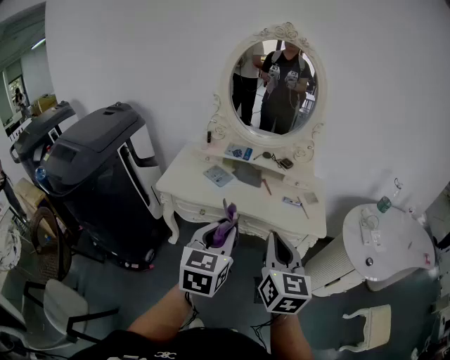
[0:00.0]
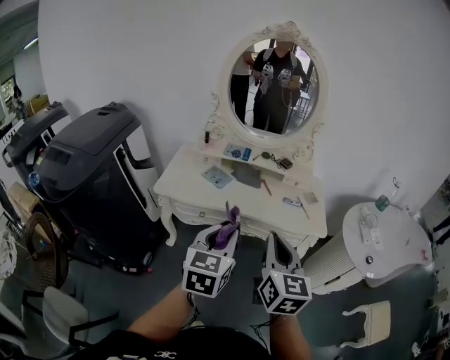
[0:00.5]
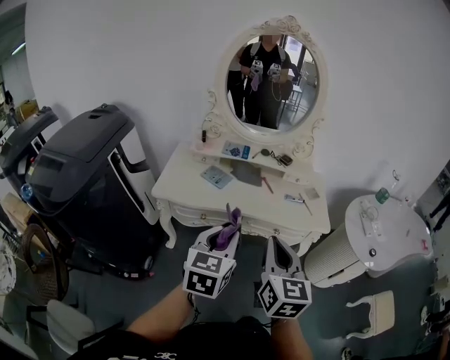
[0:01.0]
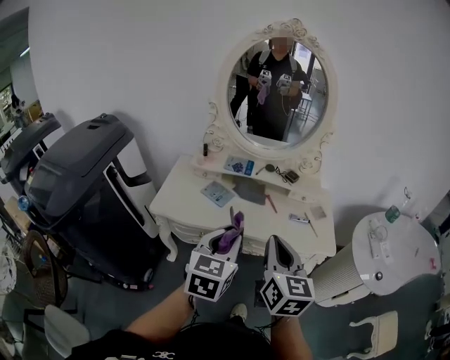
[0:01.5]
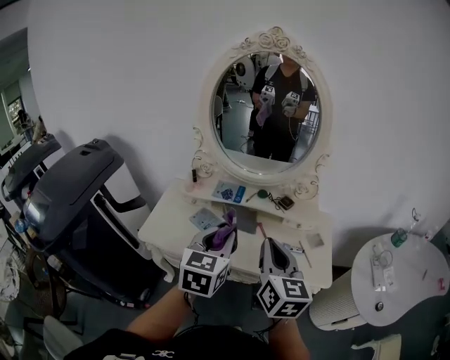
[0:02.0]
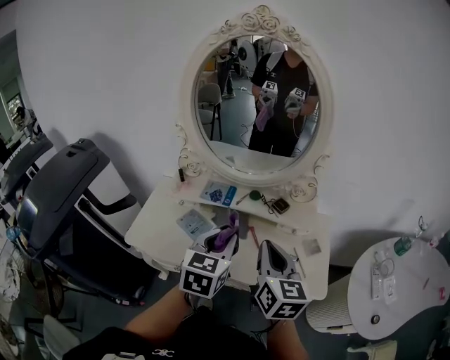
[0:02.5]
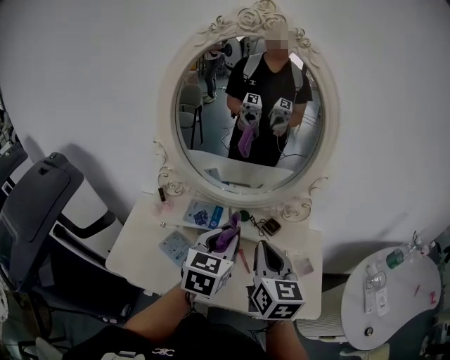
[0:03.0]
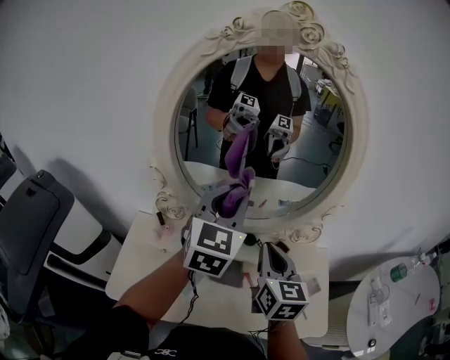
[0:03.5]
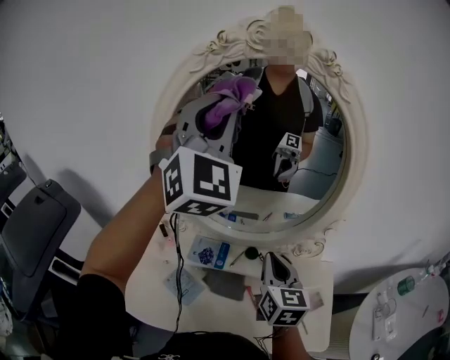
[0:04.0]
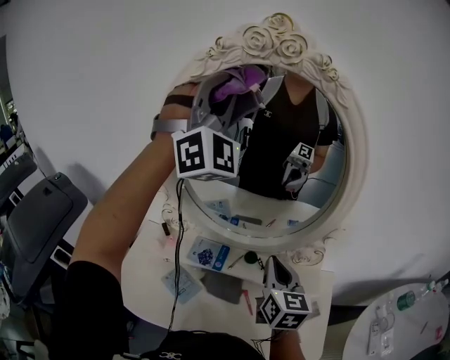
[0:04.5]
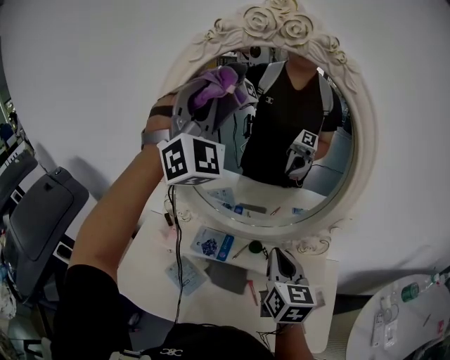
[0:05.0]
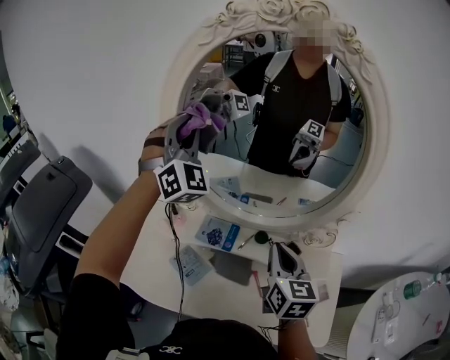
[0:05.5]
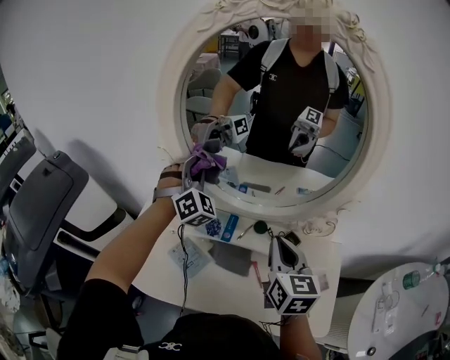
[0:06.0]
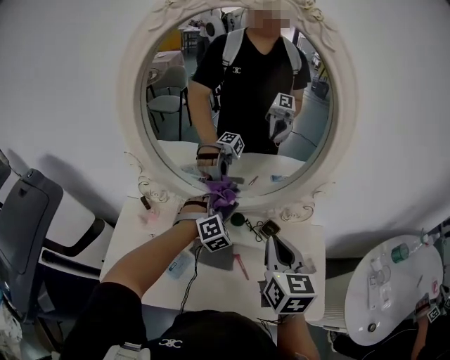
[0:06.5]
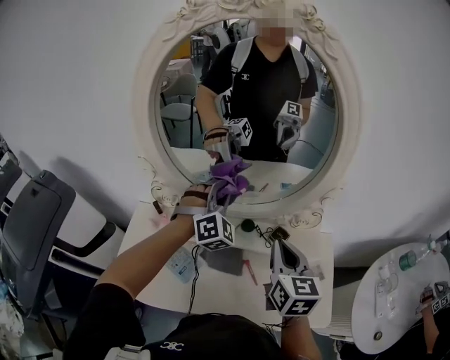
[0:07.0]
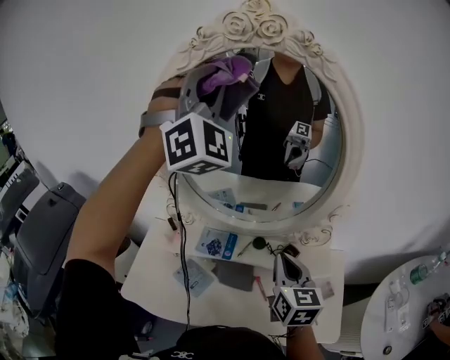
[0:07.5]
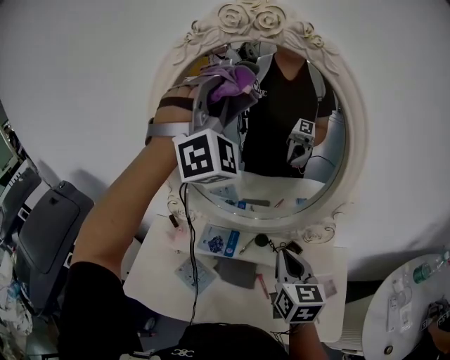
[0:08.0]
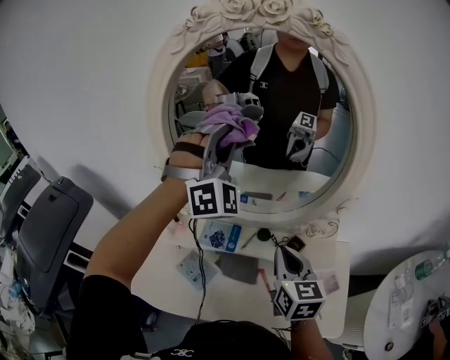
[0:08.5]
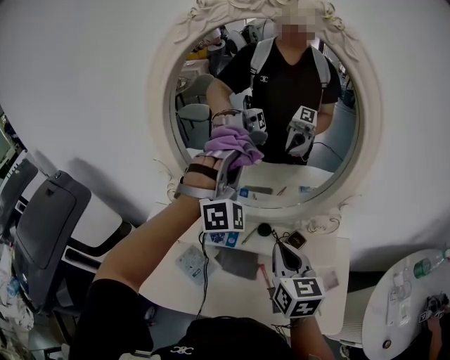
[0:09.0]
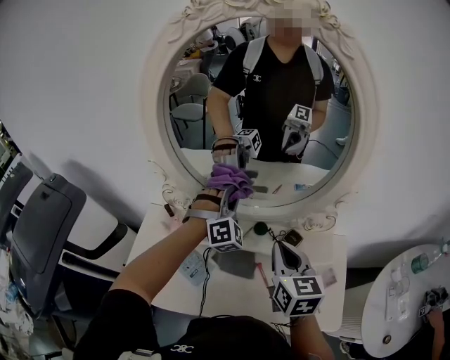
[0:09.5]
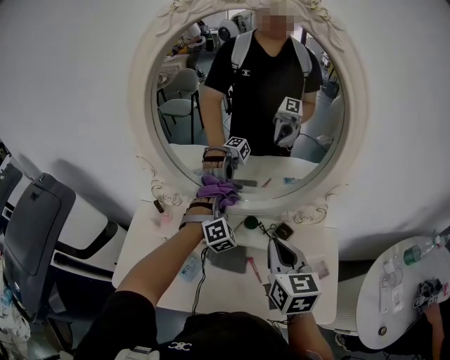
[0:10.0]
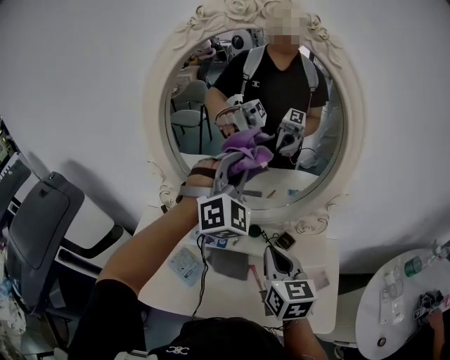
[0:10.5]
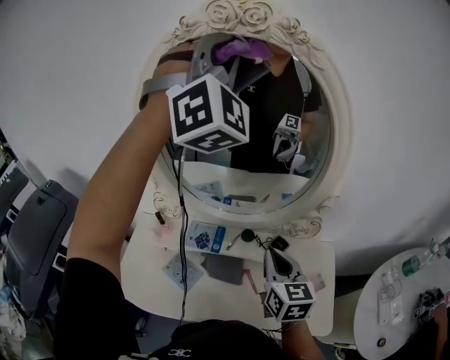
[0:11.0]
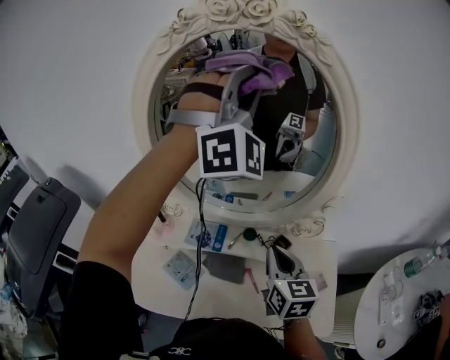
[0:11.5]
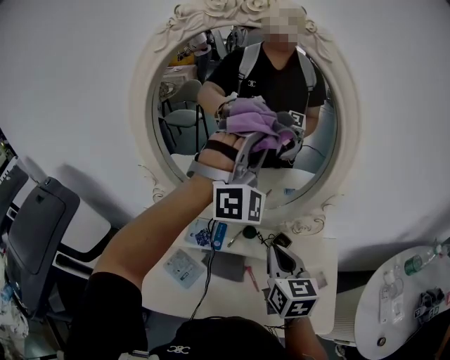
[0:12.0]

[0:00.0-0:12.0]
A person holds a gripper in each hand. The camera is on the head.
0:00.0 to 0:02.0: The grippers both shift forward by some 25 cm.
0:02.0 to 0:04.0: The left gripper moves forward and upward, about 50 cm, and rolls clockwise, seen from behind, by about 50 degrees; the right gripper shifts roughly 30 cm forward.
0:04.0 to 0:06.0: The left gripper moves downward, roughly 30 cm, and changes its angle by approximately 40 degrees.
0:06.0 to 0:08.0: The left gripper shifts about 35 cm upward and to the right, and changes its angle by roughly 30 degrees.
0:08.0 to 0:10.0: The left gripper travels downward by approximately 50 cm, and angles its fingers downward, by about 50 degrees.
0:10.0 to 0:12.0: The left gripper is displaced upward by roughly 35 cm, and angles its fingers upward, by about 40 degrees.

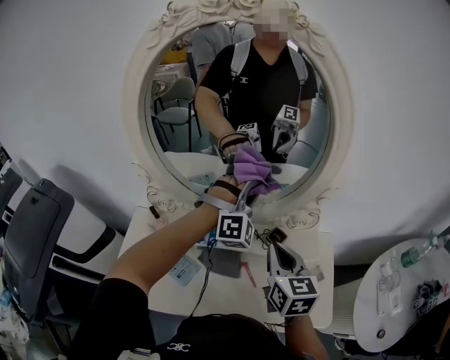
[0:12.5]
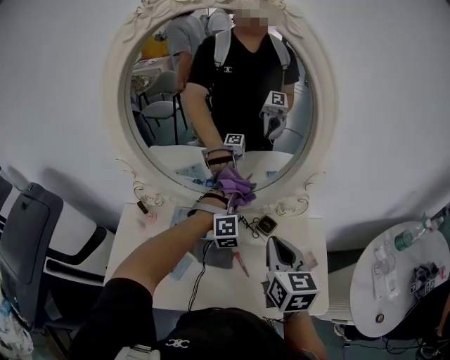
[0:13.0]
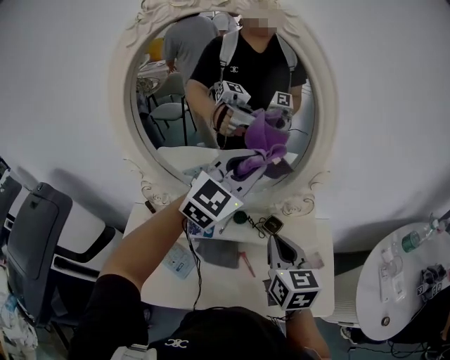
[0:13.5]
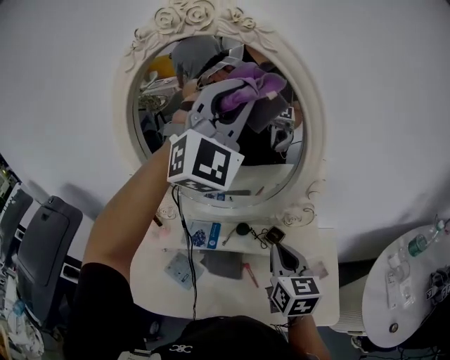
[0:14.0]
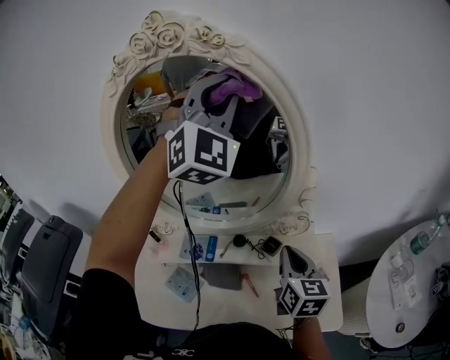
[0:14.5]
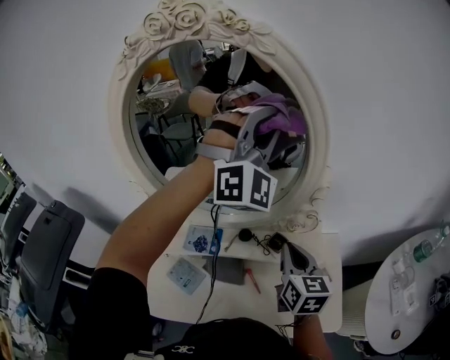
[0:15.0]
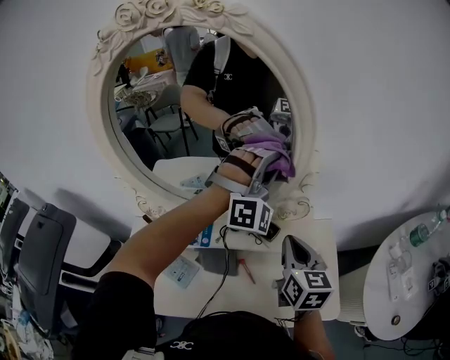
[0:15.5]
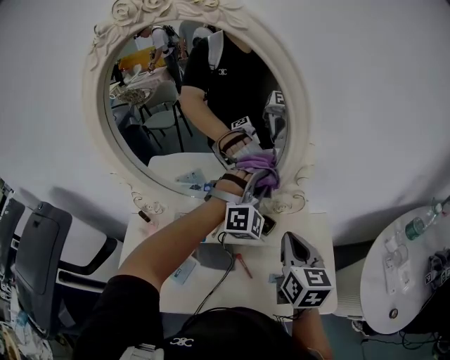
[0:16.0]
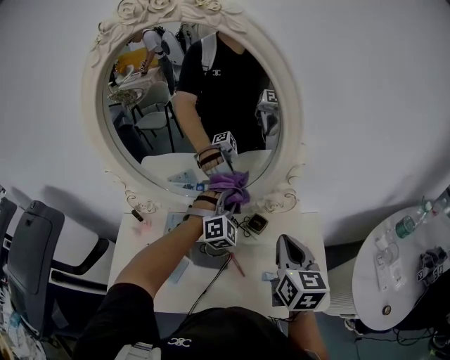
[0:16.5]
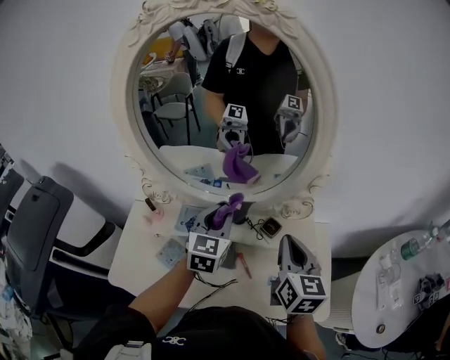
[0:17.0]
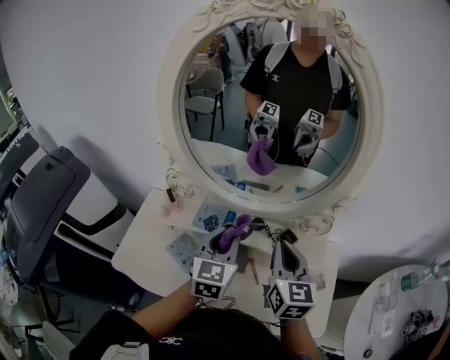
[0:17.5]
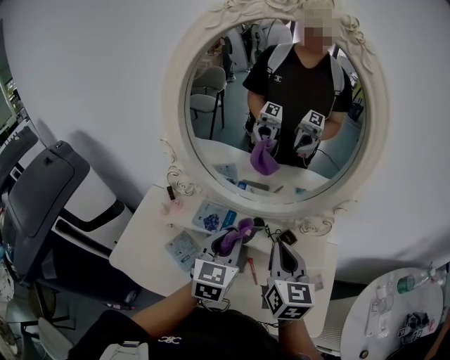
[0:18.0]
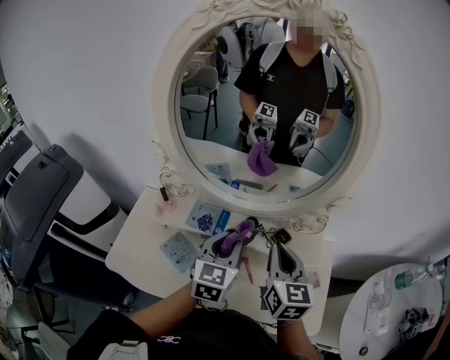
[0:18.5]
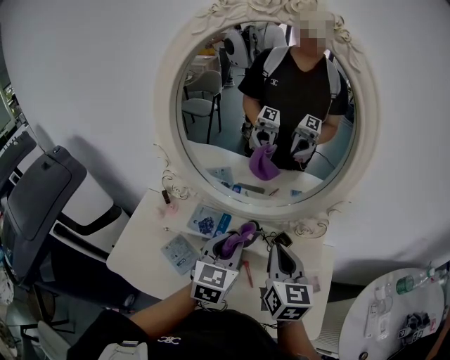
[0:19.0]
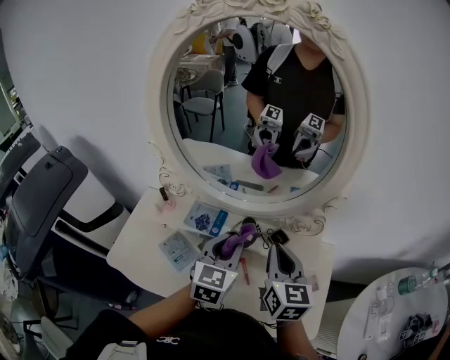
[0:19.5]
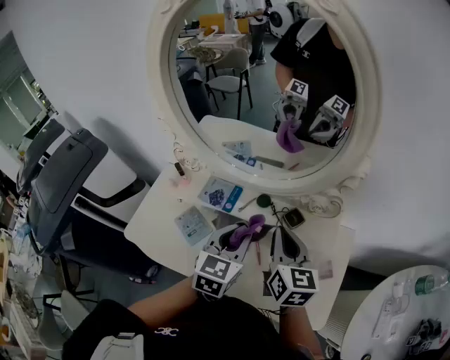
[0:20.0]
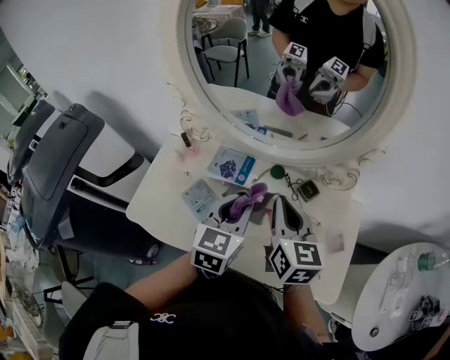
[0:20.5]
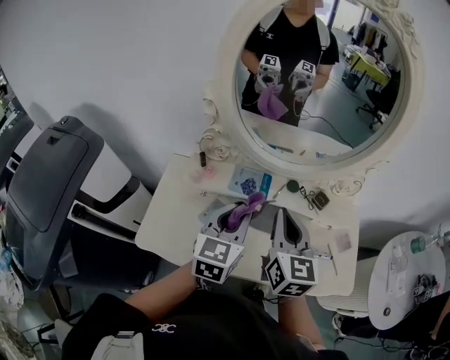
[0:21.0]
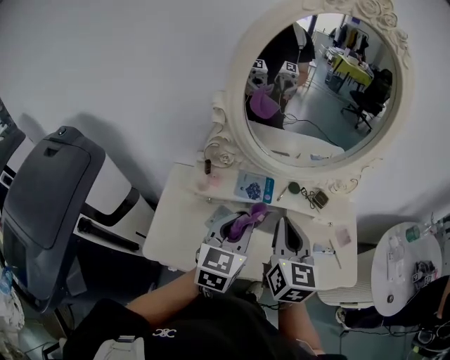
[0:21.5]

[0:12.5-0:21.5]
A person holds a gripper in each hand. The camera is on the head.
0:12.5 to 0:14.5: The right gripper moves to the right, approximately 10 cm, while the left gripper is displaced upward by some 35 cm, and swivels roughly 30 degrees.
0:14.5 to 0:17.0: The left gripper travels downward by approximately 40 cm, and rotates around the line of its fingers by roughly 60 degrees, counterclockwise from behind.
0:17.0 to 0:19.5: The right gripper shifts approximately 5 cm to the left, while the left gripper is displaced backward by roughly 5 cm.
0:19.5 to 0:21.5: Both grippers travel together to the left and backward, approximately 20 cm.

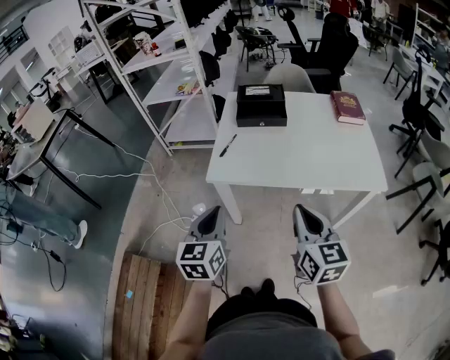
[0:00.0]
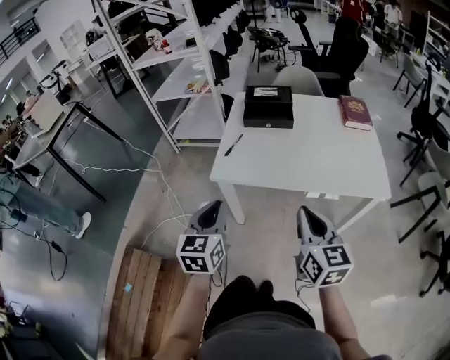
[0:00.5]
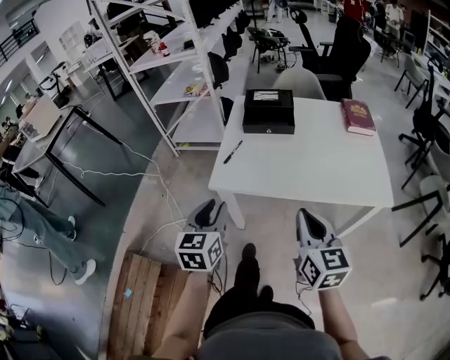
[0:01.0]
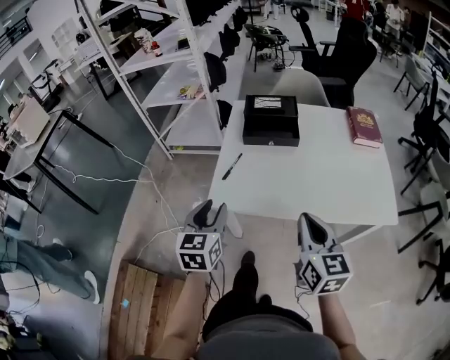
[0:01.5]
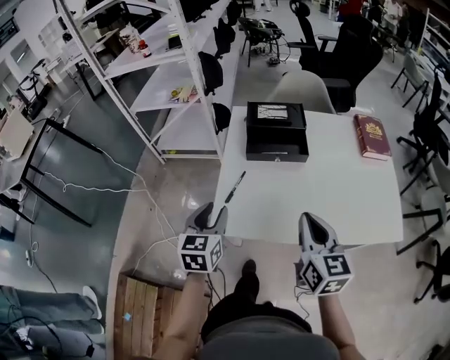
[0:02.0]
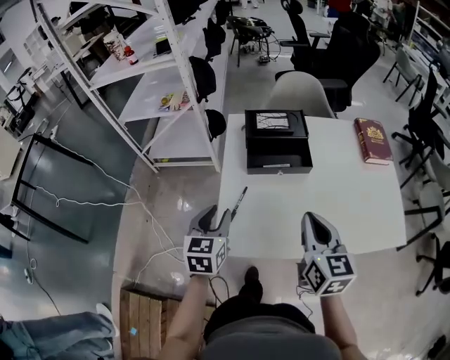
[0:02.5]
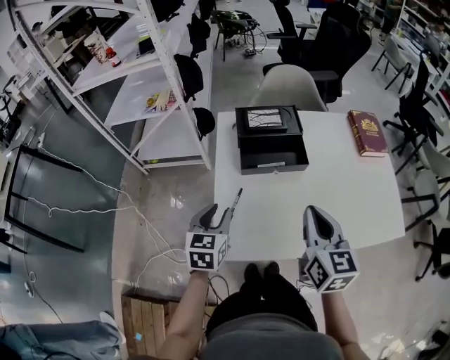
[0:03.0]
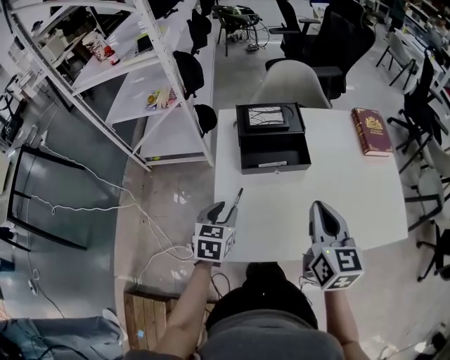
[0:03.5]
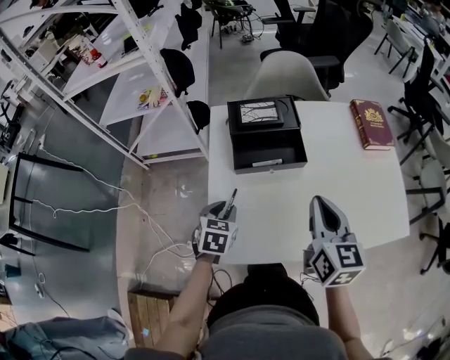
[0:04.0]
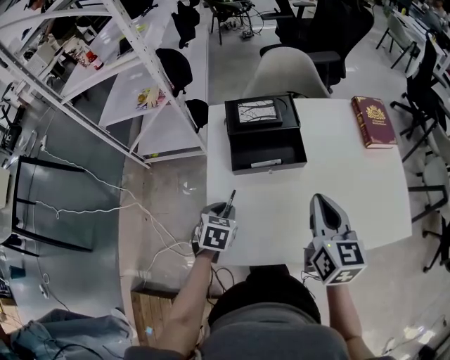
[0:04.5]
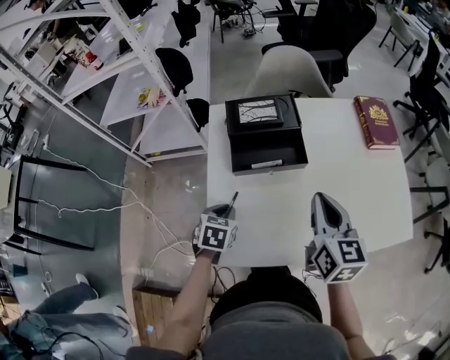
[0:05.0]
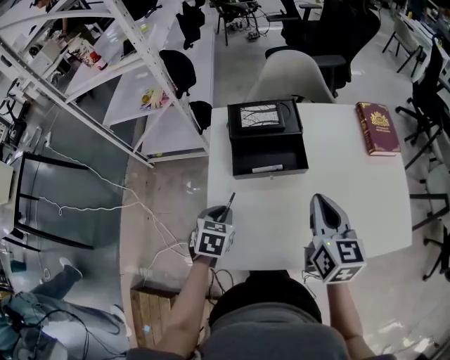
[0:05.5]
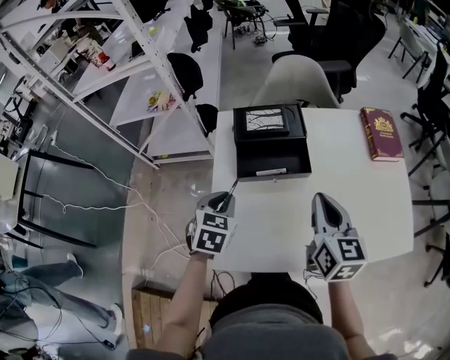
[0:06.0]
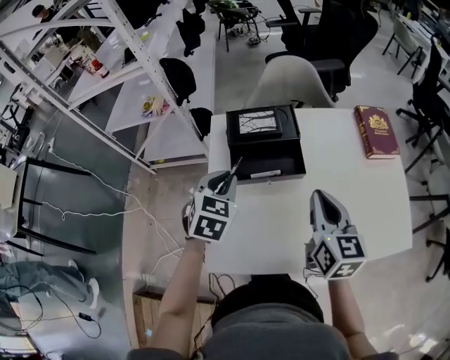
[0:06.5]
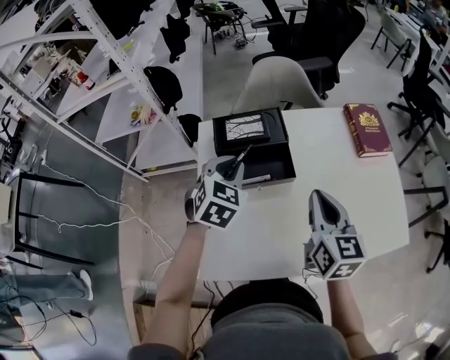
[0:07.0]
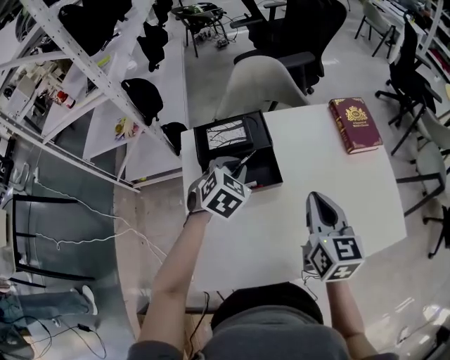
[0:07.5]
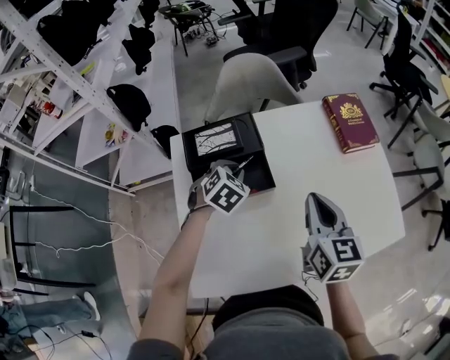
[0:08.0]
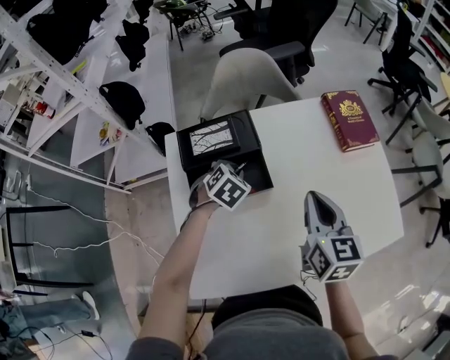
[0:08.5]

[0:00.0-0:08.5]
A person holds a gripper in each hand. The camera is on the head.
0:00.0 to 0:02.0: Both grippers move forward, some 25 cm. The left gripper opens its fingers.
0:02.0 to 0:04.0: The left gripper shifts approximately 15 cm forward and downward, and changes its angle by roughly 30 degrees; the right gripper moves forward, approximately 10 cm.
0:04.0 to 0:06.5: The left gripper travels upward and forward by approximately 15 cm, while the right gripper goes some 5 cm forward.
0:06.5 to 0:08.5: The left gripper is displaced downward, forward and to the right by about 20 cm, and rotates about 30 degrees, while the right gripper is displaced to the right and forward by approximately 10 cm.
